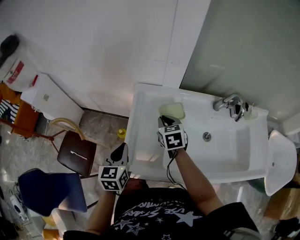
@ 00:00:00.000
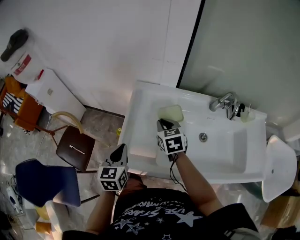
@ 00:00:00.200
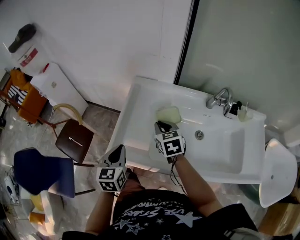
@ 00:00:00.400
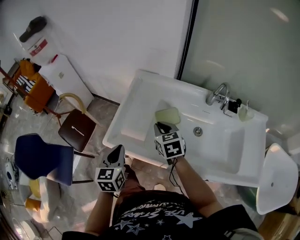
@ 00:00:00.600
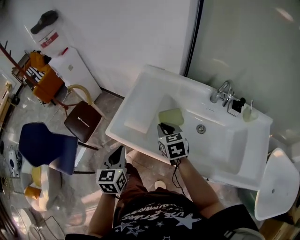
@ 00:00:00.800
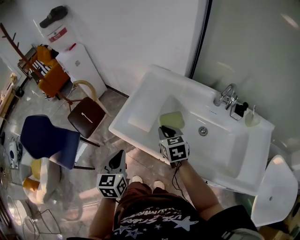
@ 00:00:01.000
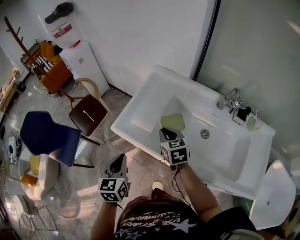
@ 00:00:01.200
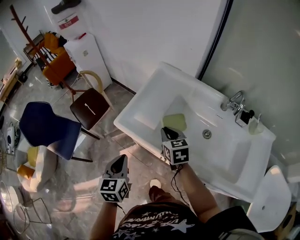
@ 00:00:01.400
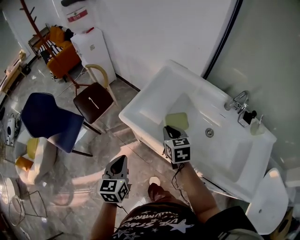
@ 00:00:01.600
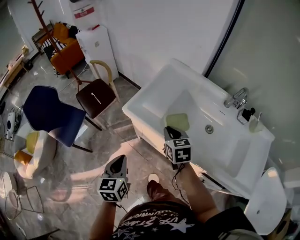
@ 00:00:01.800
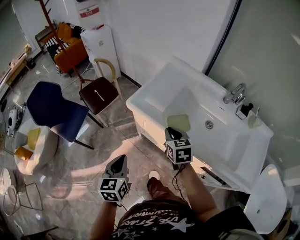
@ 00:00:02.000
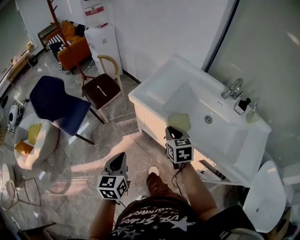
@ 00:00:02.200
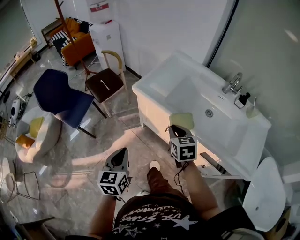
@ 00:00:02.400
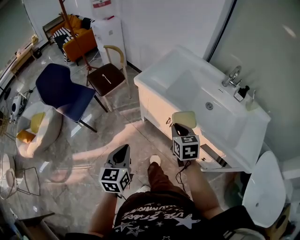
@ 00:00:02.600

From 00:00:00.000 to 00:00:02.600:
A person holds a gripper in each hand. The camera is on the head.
From 00:00:00.000 to 00:00:01.200: The left gripper changes place by some 30 cm, and swivels roughly 20 degrees; the right gripper changes place by roughly 20 cm, and turns by roughly 20 degrees.
From 00:00:01.200 to 00:00:02.600: Both grippers travel together backward, about 30 cm.

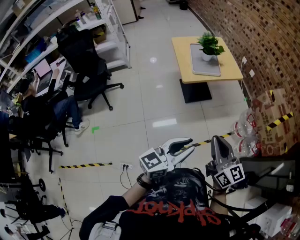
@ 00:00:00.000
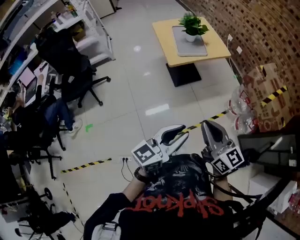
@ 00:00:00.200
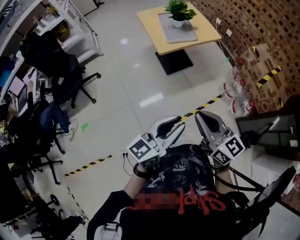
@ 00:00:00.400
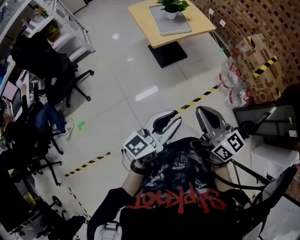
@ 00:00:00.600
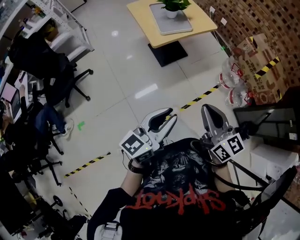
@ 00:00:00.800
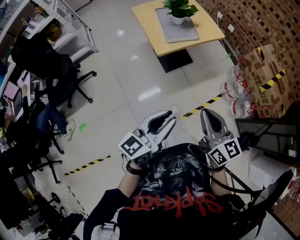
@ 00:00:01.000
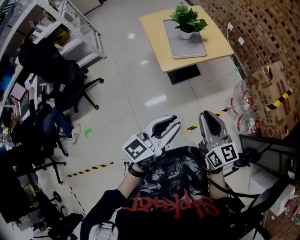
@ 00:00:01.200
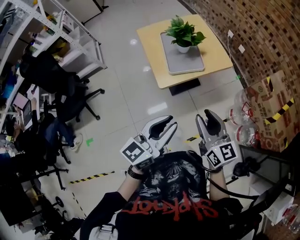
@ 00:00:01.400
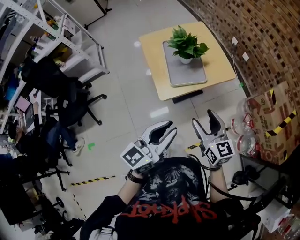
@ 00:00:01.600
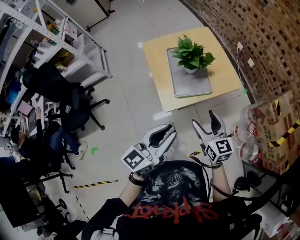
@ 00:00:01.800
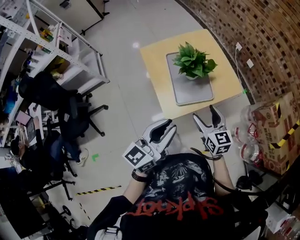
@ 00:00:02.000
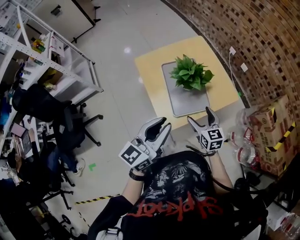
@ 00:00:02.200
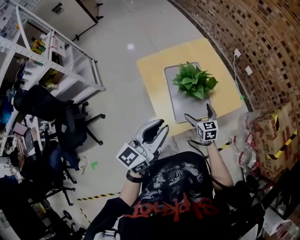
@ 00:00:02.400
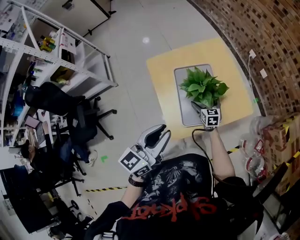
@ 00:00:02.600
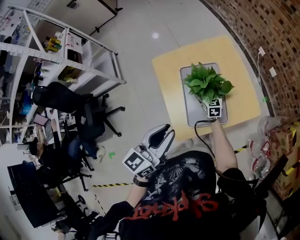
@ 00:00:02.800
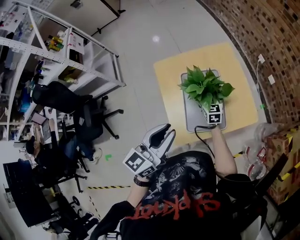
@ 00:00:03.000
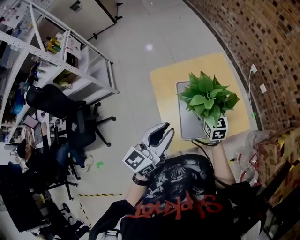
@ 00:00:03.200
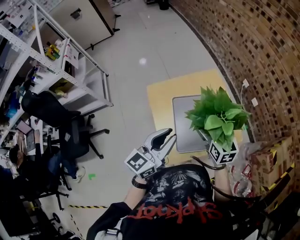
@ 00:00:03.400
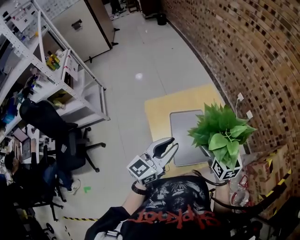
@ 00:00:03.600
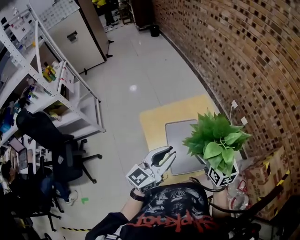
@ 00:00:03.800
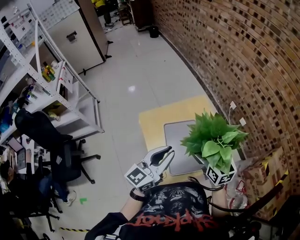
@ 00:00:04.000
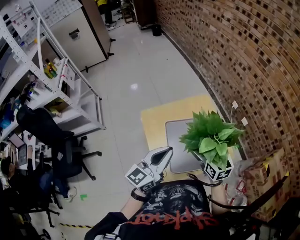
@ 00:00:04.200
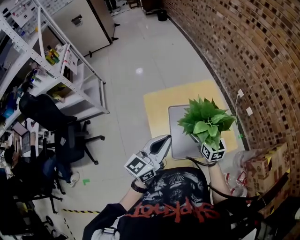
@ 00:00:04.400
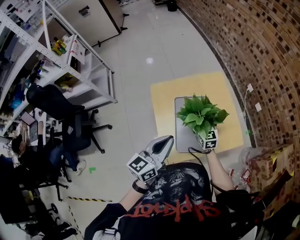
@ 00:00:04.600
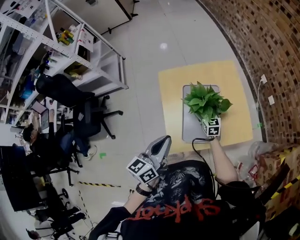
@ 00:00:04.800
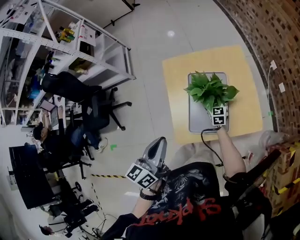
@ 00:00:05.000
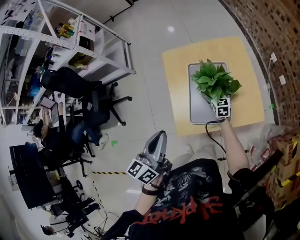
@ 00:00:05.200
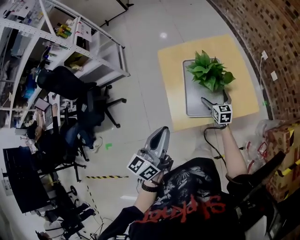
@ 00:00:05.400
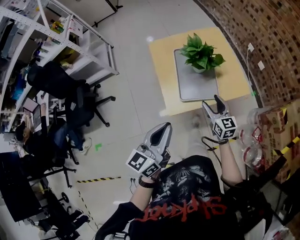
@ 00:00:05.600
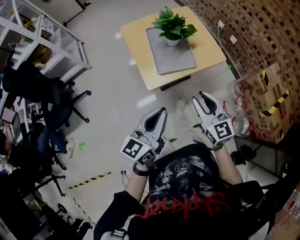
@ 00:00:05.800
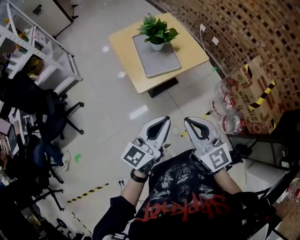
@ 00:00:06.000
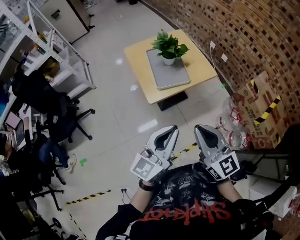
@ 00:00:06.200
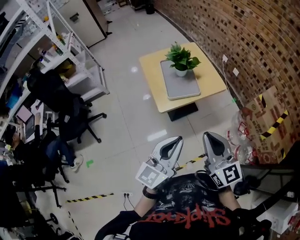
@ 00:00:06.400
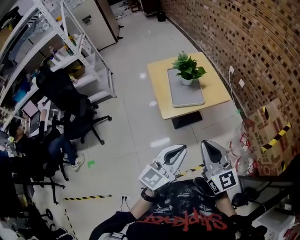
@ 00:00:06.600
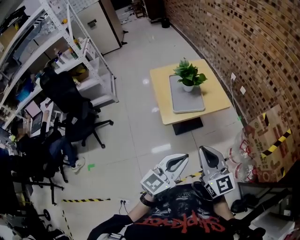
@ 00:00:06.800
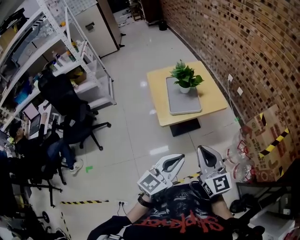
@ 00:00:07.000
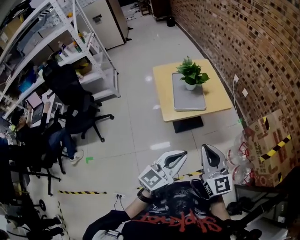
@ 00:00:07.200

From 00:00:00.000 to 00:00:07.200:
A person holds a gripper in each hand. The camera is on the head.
From 00:00:00.000 to 00:00:01.400: Both grippers move forward, approximately 35 cm.
From 00:00:01.400 to 00:00:02.800: The left gripper shifts approximately 35 cm forward, while the right gripper heads forward and downward, covering about 60 cm, turns by some 20 degrees, and opens.
From 00:00:02.800 to 00:00:04.400: The left gripper moves roughly 5 cm, and closes; the right gripper is displaced upward by approximately 25 cm.
From 00:00:04.400 to 00:00:05.800: The grippers both shift backward by approximately 35 cm. The right gripper closes.
From 00:00:05.800 to 00:00:07.200: The right gripper is displaced backward, upward and to the right by approximately 25 cm, while the left gripper shifts some 20 cm backward, to the right and upward, and changes its angle by roughly 20 degrees.
